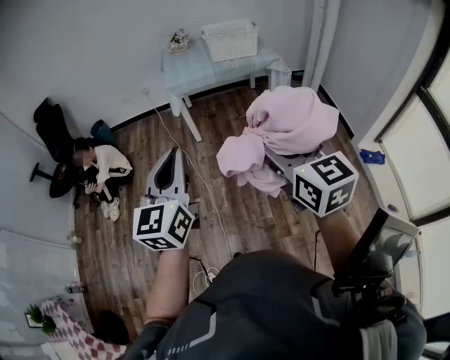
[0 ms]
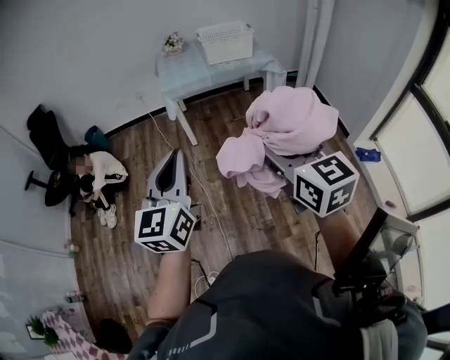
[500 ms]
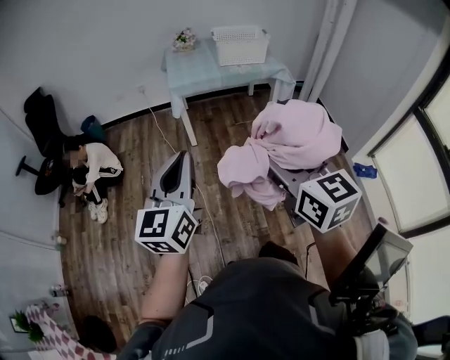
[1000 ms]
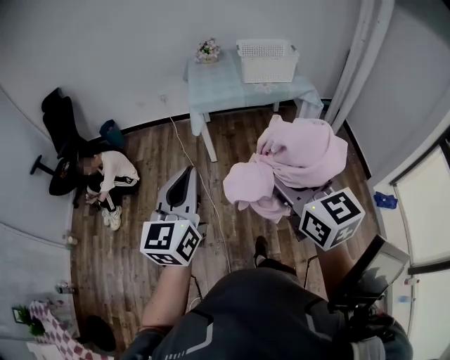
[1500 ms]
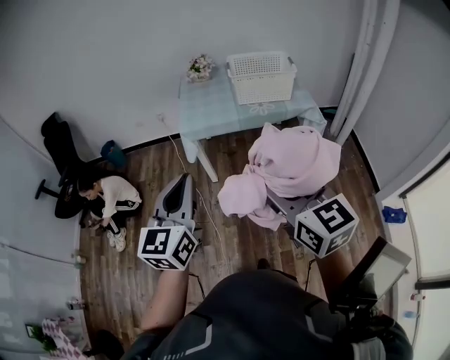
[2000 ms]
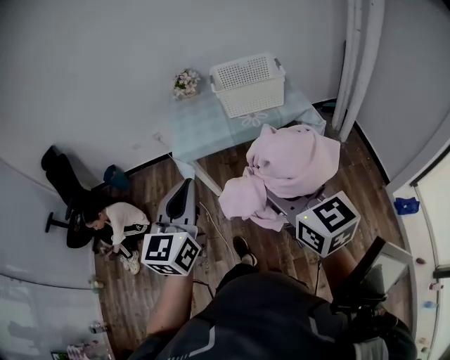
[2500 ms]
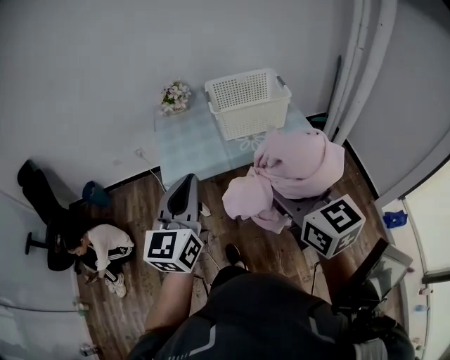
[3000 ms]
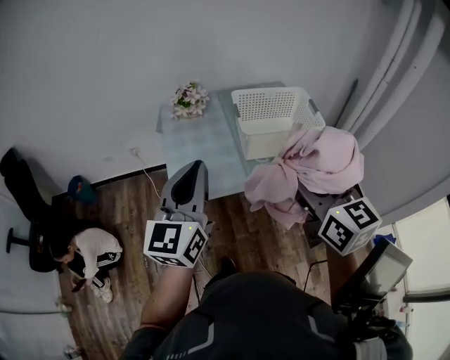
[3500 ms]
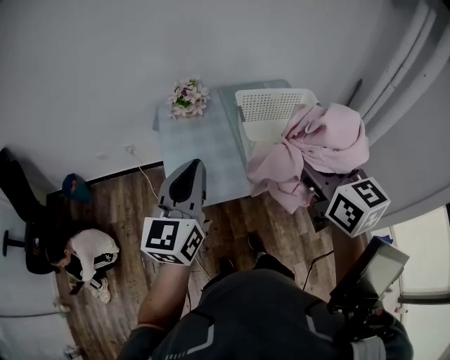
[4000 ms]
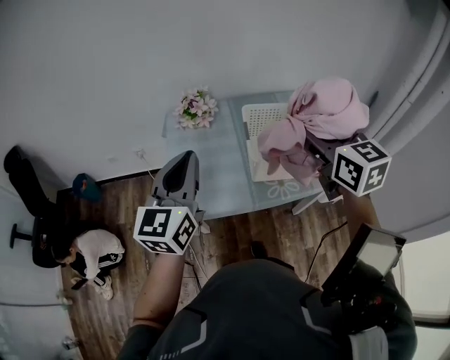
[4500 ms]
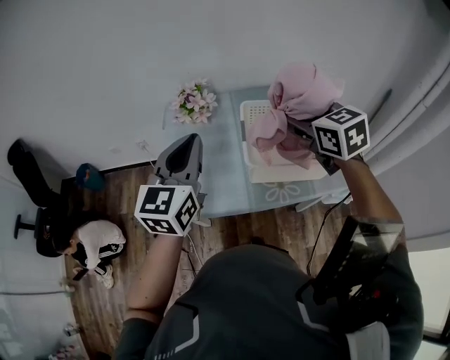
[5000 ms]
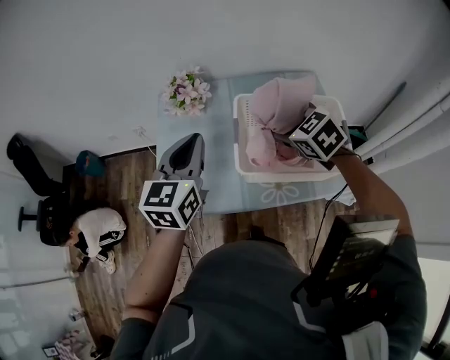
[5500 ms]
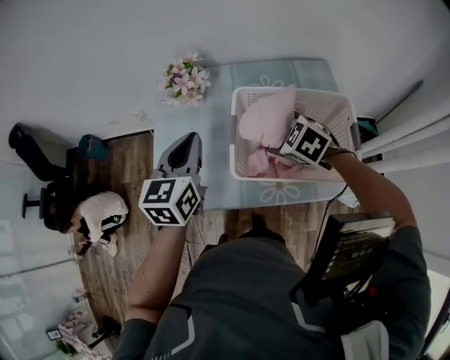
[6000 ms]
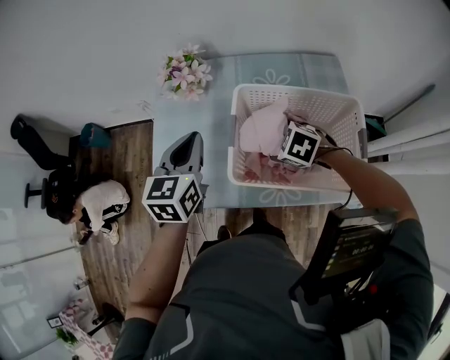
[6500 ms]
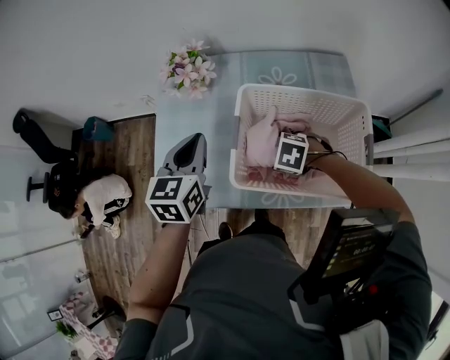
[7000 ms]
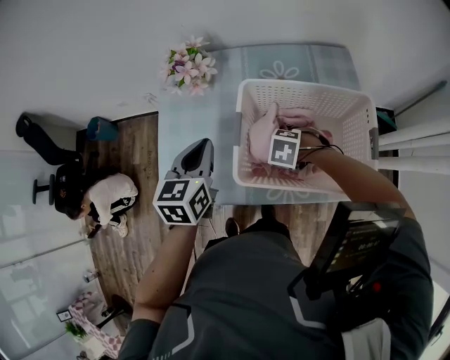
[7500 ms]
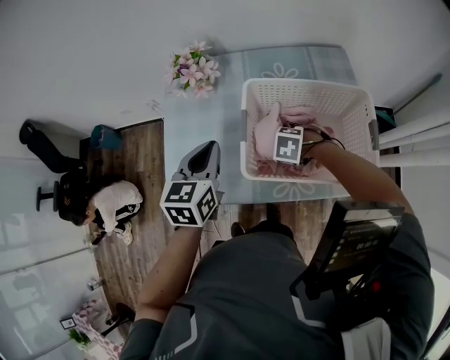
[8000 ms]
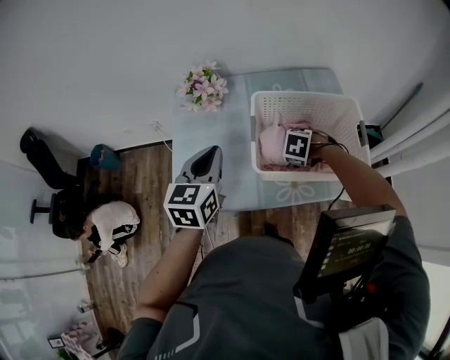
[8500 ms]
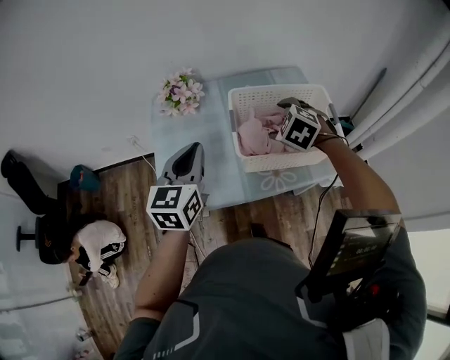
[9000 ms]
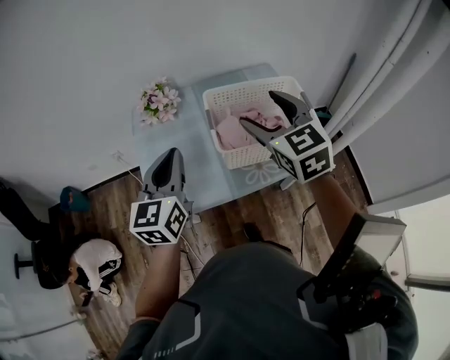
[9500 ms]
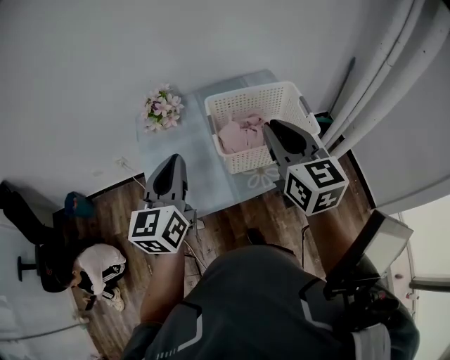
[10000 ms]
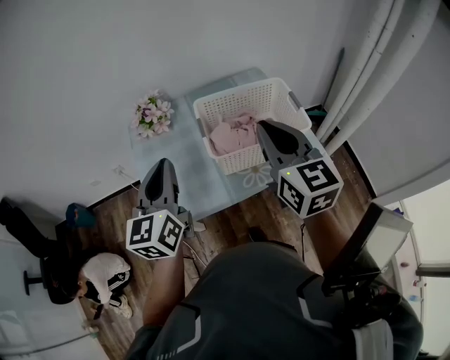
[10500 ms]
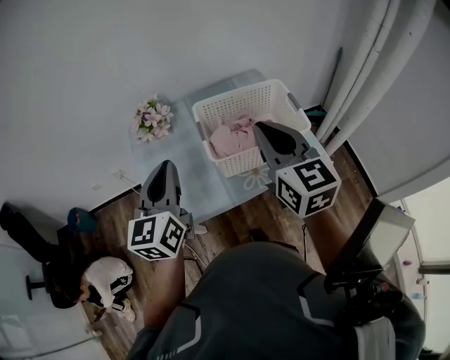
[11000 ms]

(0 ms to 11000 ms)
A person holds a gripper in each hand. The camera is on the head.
0 ms - 2000 ms: The two grippers go about 30 cm forward.
2000 ms - 3500 ms: Both grippers move forward, roughly 35 cm.
3500 ms - 5500 ms: The right gripper is displaced forward and downward by some 40 cm, and tilts its fingers about 40 degrees downward. The left gripper shifts some 25 cm forward.
5500 ms - 7500 ms: The right gripper heads downward, covering approximately 25 cm, and tips its fingers downward by about 30 degrees, while the left gripper travels downward by about 10 cm, and rotates roughly 20 degrees.
7500 ms - 9000 ms: The left gripper heads upward, covering roughly 10 cm, and rotates approximately 20 degrees, while the right gripper moves upward, about 20 cm, and rotates about 40 degrees.
9000 ms - 11000 ms: The left gripper goes roughly 10 cm upward and backward; the right gripper travels upward and backward by some 25 cm, tips its fingers upward by roughly 50 degrees, and closes up.

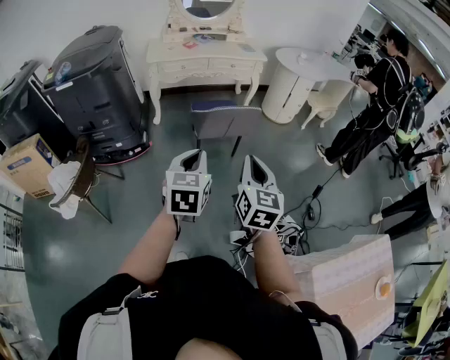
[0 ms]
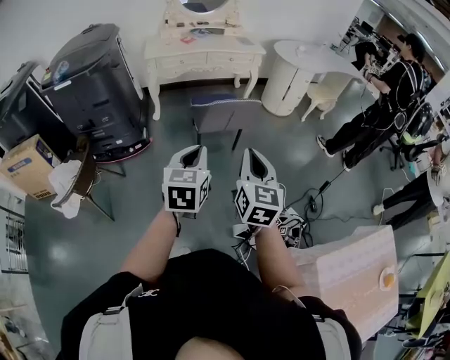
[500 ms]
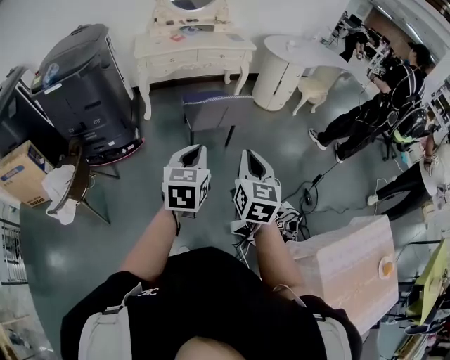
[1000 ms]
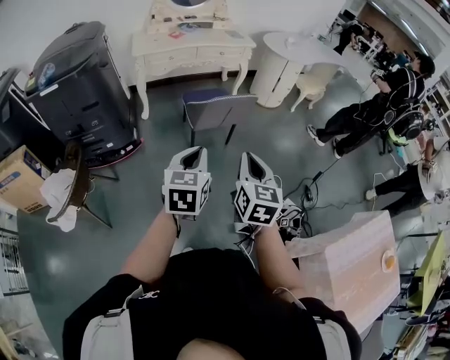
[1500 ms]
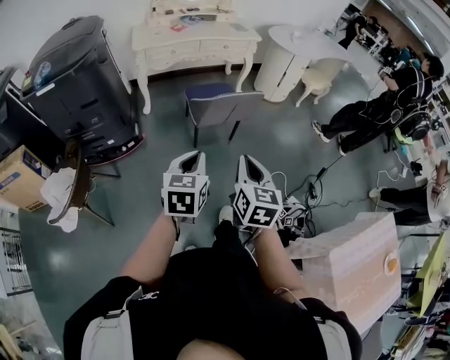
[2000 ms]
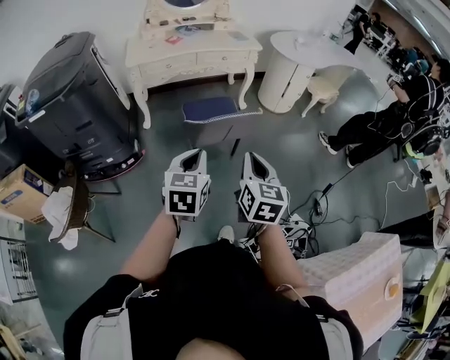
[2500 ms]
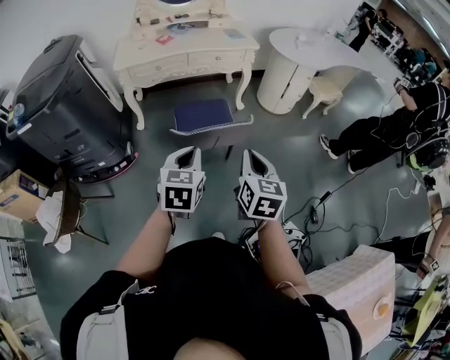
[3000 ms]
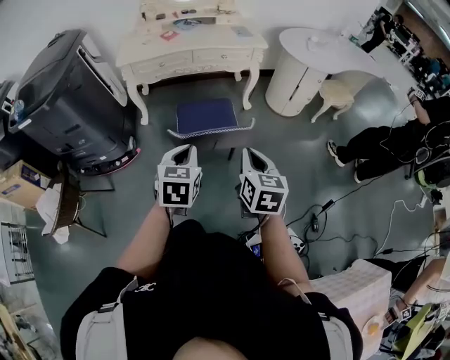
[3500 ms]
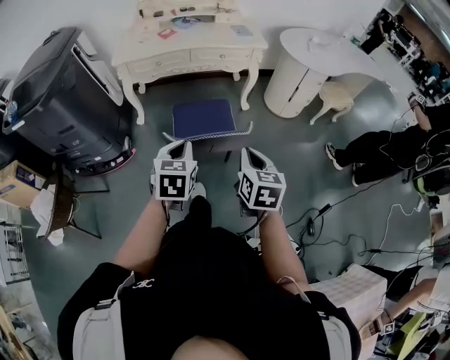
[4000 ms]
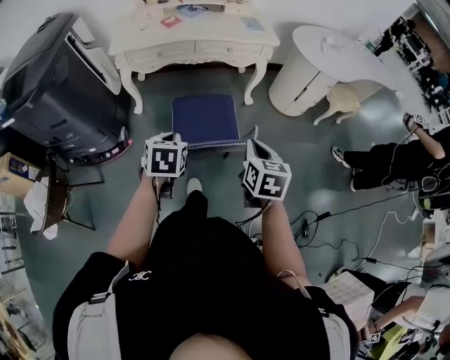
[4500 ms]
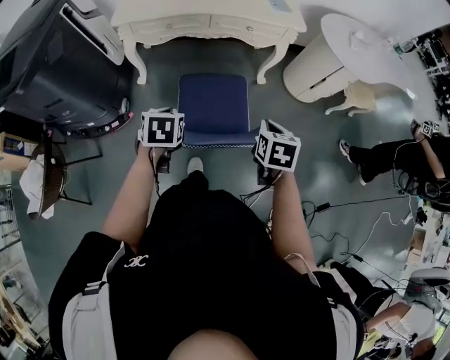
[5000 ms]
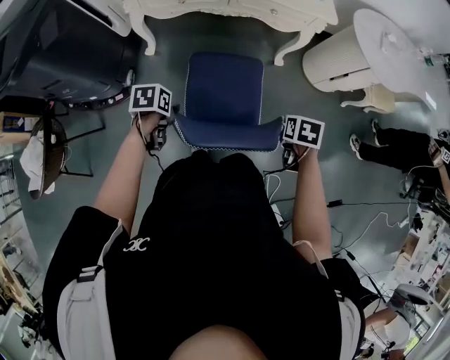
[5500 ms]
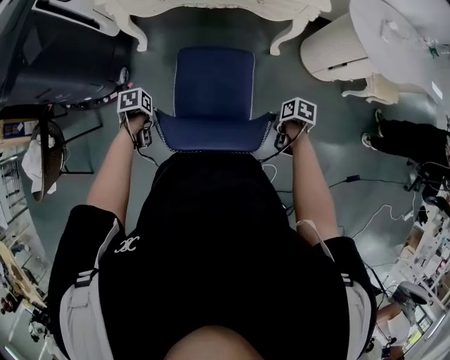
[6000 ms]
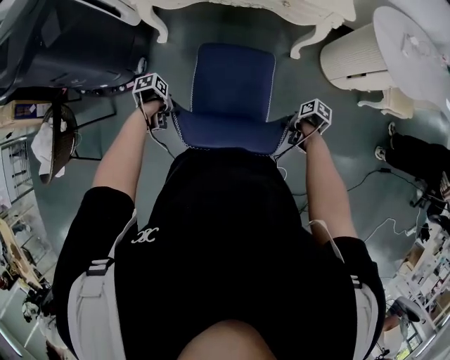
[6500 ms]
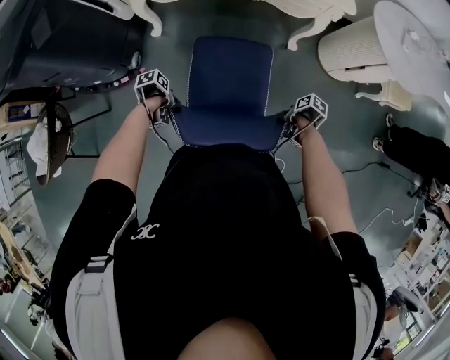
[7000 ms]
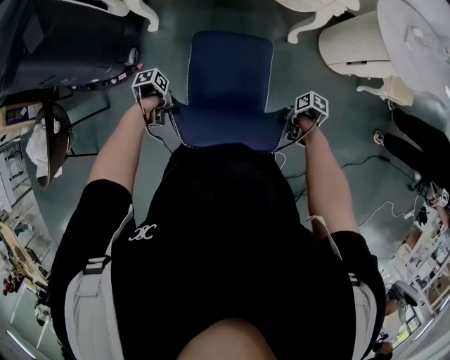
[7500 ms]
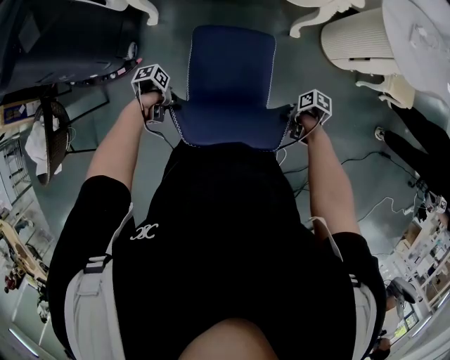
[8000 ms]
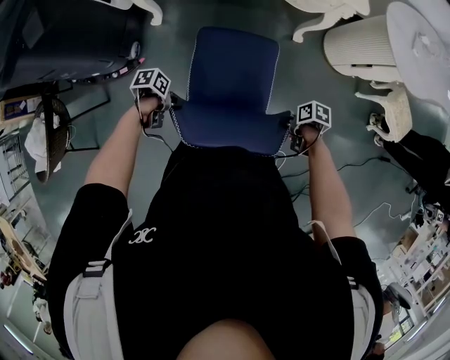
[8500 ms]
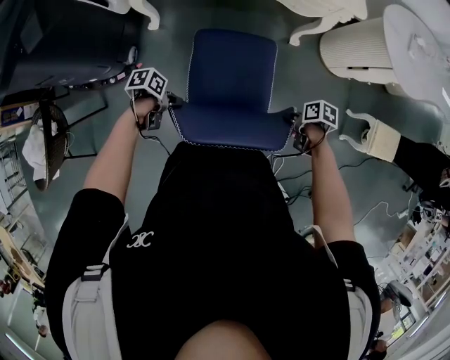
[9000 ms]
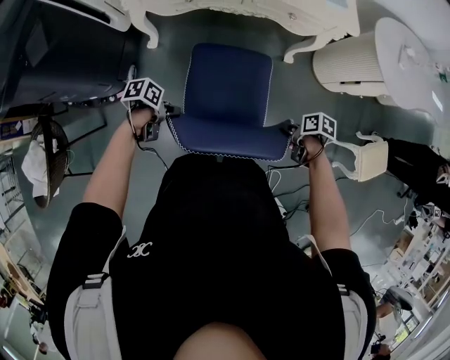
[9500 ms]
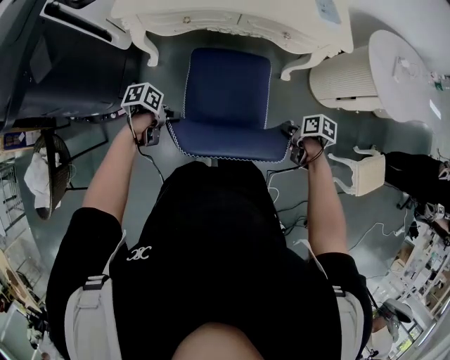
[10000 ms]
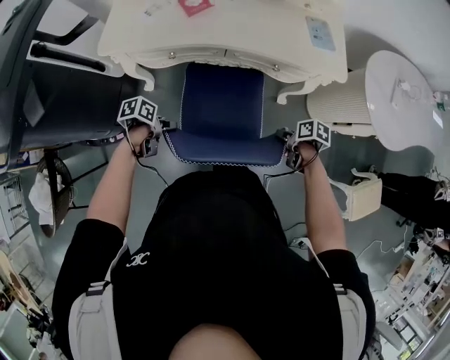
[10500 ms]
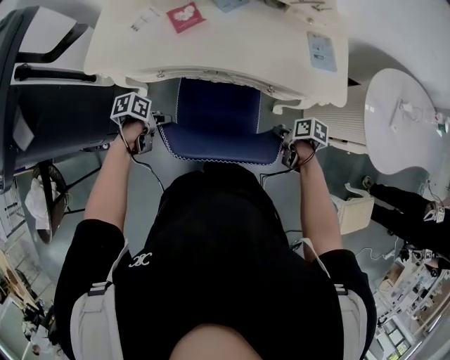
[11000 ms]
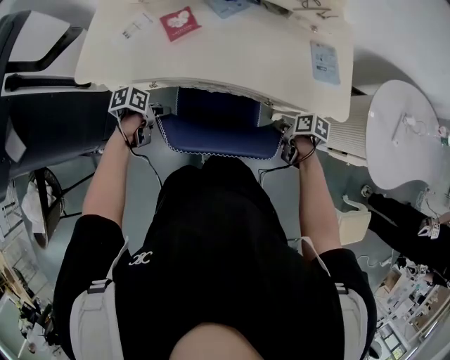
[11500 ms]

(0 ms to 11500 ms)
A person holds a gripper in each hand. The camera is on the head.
0 ms - 2000 ms: Both grippers travel together to the left and downward, about 10 cm.
2000 ms - 4000 ms: The right gripper travels forward and to the right by about 35 cm. The left gripper goes about 30 cm forward.
4000 ms - 6000 ms: The two grippers go approximately 30 cm downward. The right gripper points its fingers roughly 40 degrees further downward, and opens up, while the left gripper angles its fingers downward, by roughly 40 degrees, and opens its fingers.
6000 ms - 7500 ms: The left gripper changes place by some 5 cm, and turns by approximately 20 degrees. Meanwhile the right gripper shifts by about 5 cm.
7500 ms - 9500 ms: The right gripper shifts by some 10 cm. The left gripper shifts by about 10 cm, and changes its angle by some 20 degrees.
9500 ms - 11500 ms: The left gripper shifts by about 35 cm; the right gripper moves roughly 40 cm.

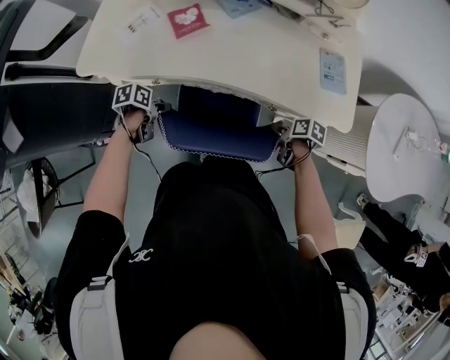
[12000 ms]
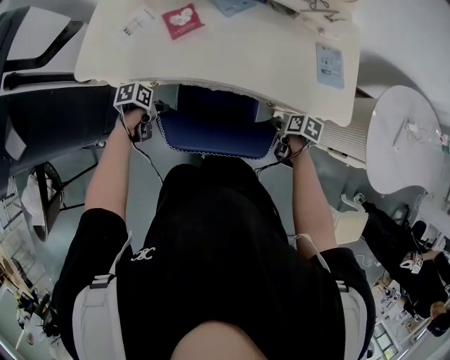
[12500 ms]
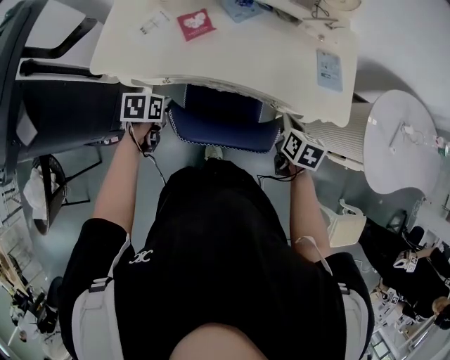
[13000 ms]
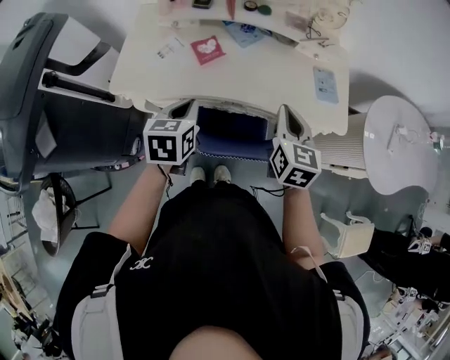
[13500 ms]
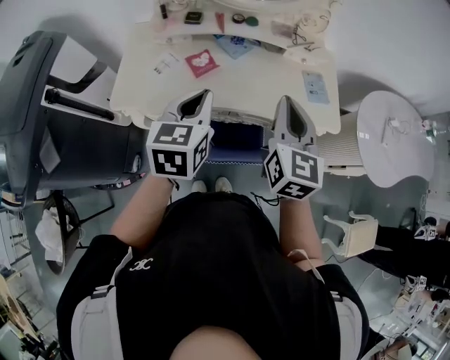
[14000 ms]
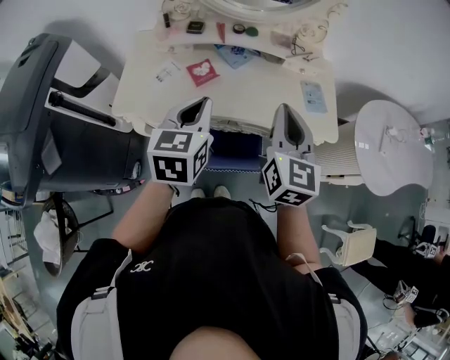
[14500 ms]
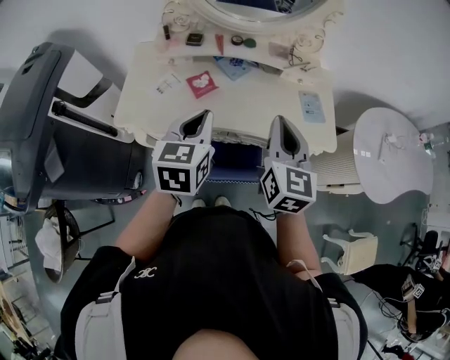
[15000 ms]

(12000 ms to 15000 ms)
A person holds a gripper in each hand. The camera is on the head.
12000 ms - 13500 ms: Both grippers move upward, roughly 30 cm. The left gripper rotates some 50 degrees, and closes, while the right gripper tips its fingers upward by approximately 40 degrees, and closes its fingers.
13500 ms - 15000 ms: Both grippers move upward, approximately 10 cm.
